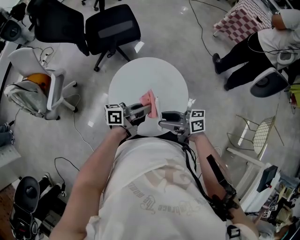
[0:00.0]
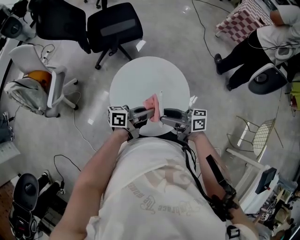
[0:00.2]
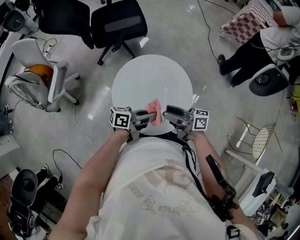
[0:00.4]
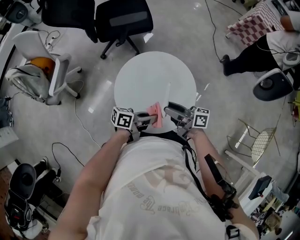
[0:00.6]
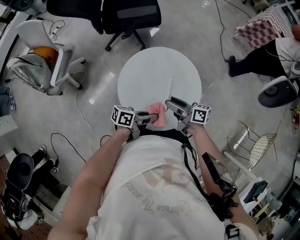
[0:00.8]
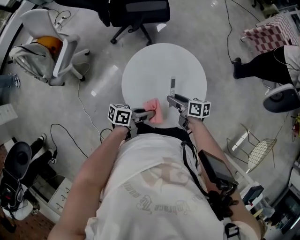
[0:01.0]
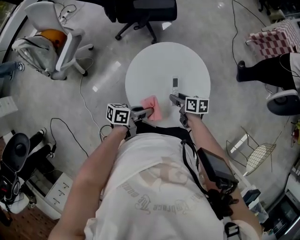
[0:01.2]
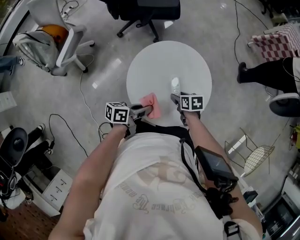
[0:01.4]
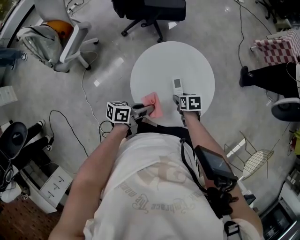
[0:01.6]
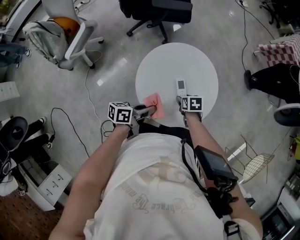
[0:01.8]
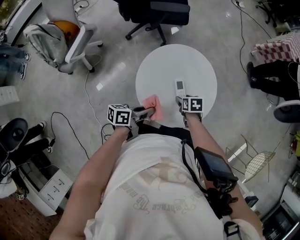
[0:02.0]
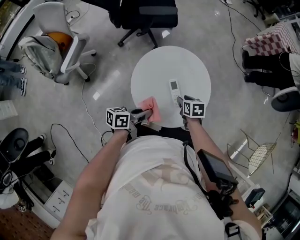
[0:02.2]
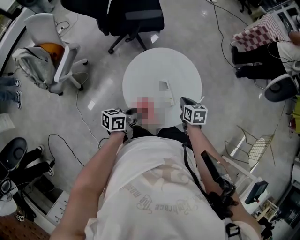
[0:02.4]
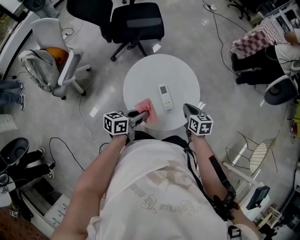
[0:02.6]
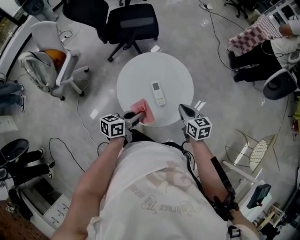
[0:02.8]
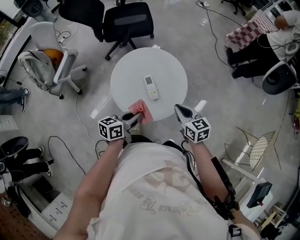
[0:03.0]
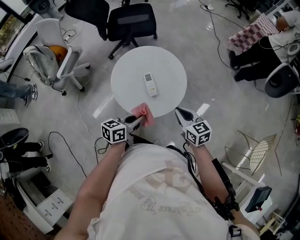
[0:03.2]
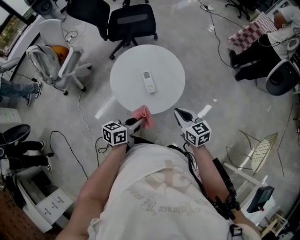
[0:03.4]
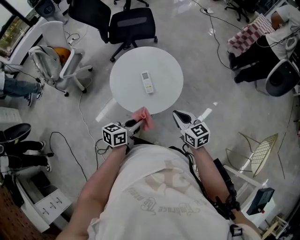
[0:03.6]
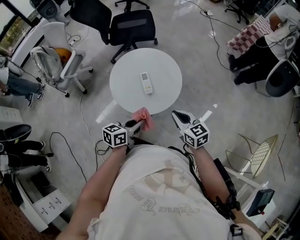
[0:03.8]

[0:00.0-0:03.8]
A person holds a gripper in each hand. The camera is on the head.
0:00.0 to 0:01.2: The right gripper is displaced downward by approximately 20 cm, and tips its fingers downward by about 40 degrees. Meanwhile the left gripper moves downward, about 10 cm, and changes its angle by roughly 20 degrees.
0:01.2 to 0:02.6: The left gripper moves upward, some 5 cm. Meanwhile the right gripper heads upward, covering roughly 10 cm, turns by some 30 degrees, and closes up.
0:02.6 to 0:03.8: The right gripper goes about 20 cm backward, upward and to the right, and changes its angle by roughly 30 degrees. The left gripper moves to the right and backward, approximately 20 cm.

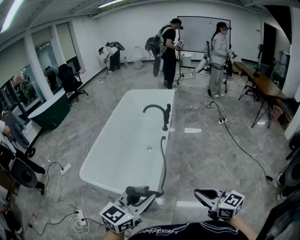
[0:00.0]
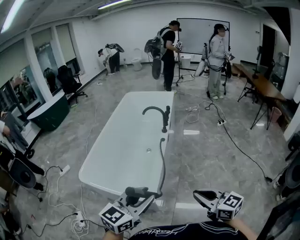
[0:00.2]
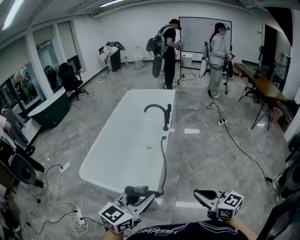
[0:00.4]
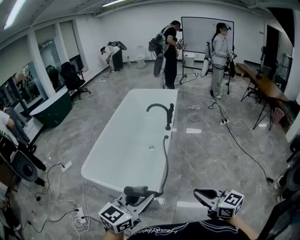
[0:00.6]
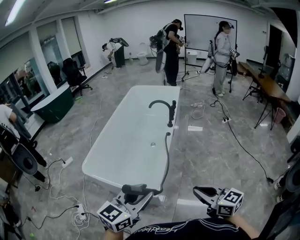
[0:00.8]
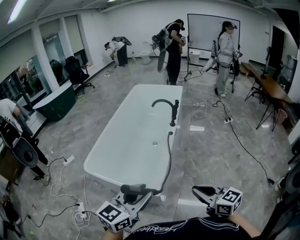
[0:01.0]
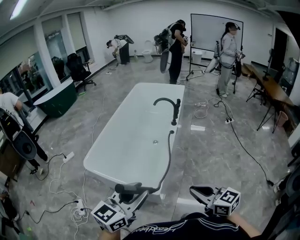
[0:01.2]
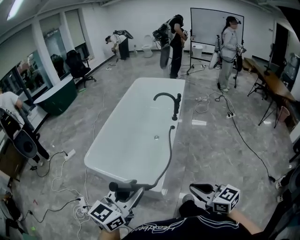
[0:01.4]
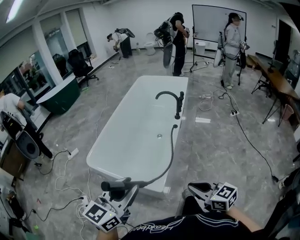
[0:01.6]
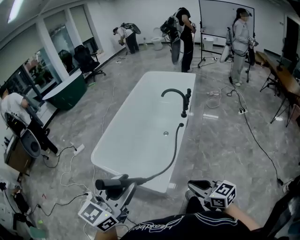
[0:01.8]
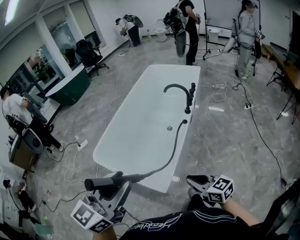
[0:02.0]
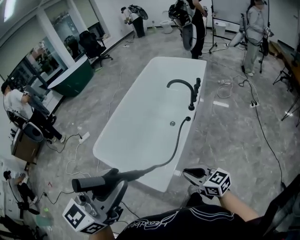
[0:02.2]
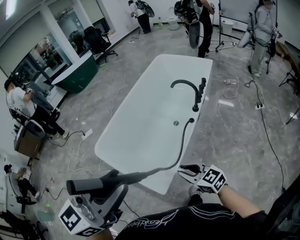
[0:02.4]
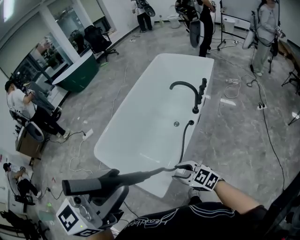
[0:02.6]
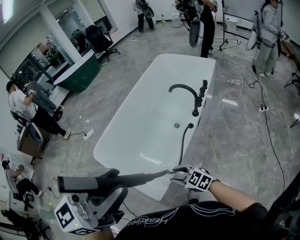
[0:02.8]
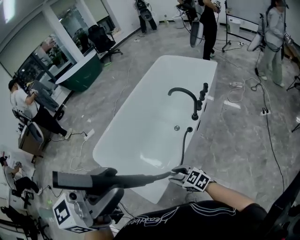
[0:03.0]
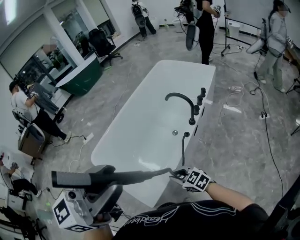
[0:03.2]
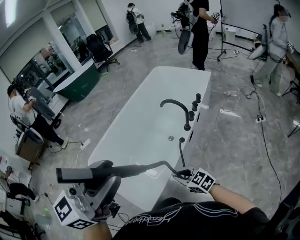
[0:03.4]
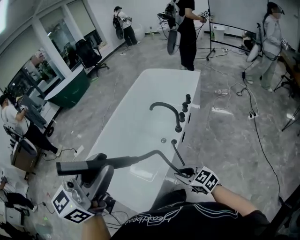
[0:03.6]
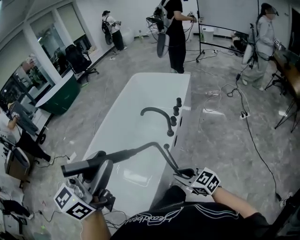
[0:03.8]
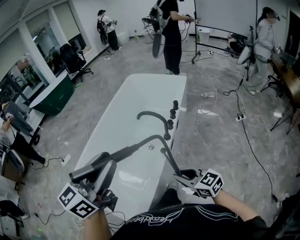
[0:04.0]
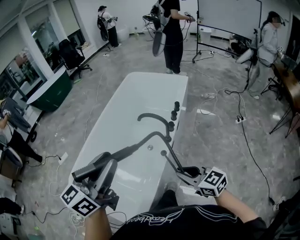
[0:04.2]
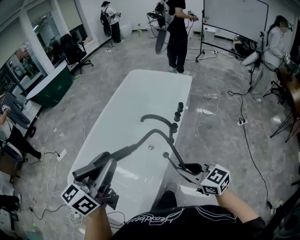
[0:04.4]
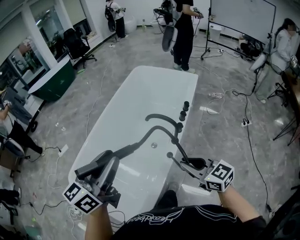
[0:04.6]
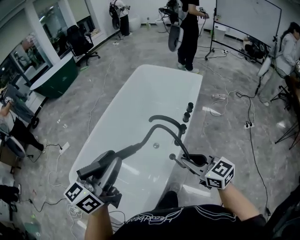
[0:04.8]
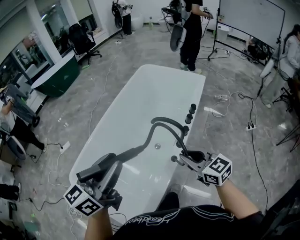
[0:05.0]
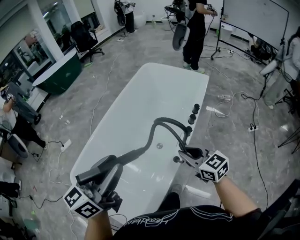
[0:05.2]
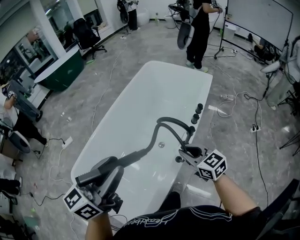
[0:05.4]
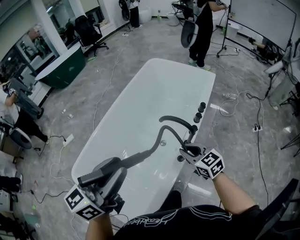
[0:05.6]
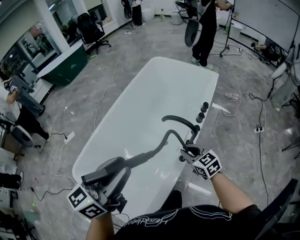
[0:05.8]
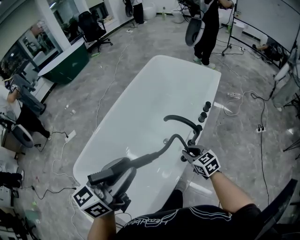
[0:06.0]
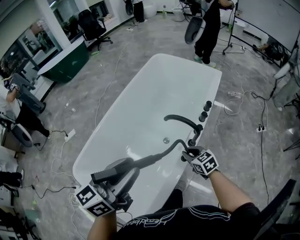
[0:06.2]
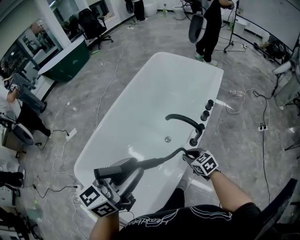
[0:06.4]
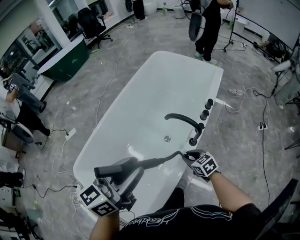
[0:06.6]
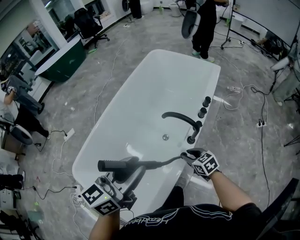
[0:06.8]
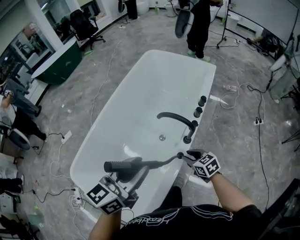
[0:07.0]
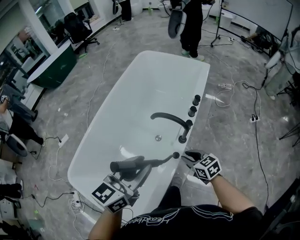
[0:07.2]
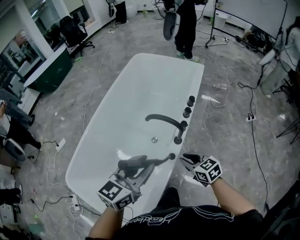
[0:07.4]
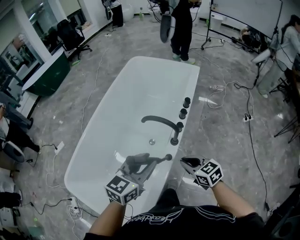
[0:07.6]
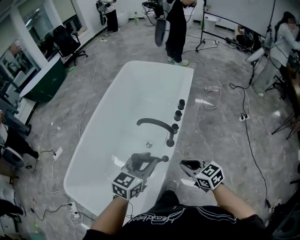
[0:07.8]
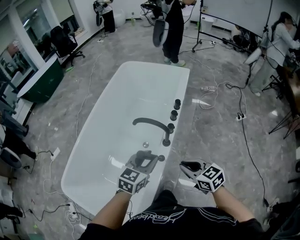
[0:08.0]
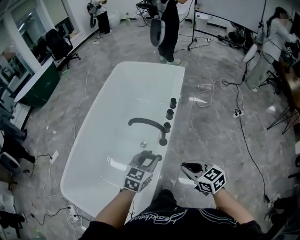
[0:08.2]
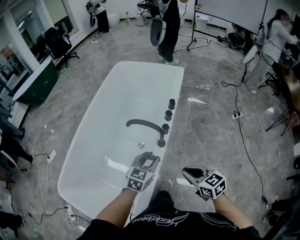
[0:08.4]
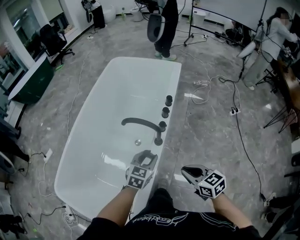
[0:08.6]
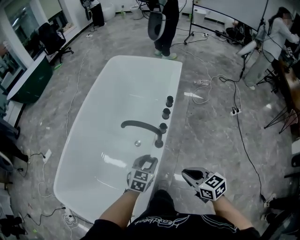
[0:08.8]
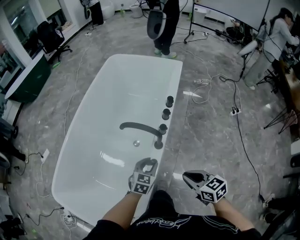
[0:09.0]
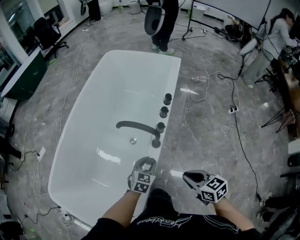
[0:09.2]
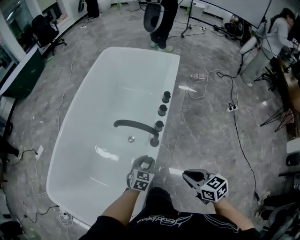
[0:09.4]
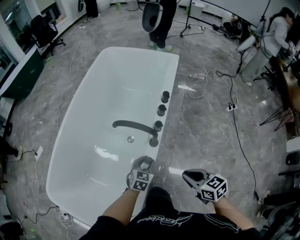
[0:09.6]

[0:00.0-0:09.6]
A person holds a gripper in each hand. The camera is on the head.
0:00.0 to 0:01.6: The left gripper goes some 10 cm to the left. The right gripper shifts approximately 5 cm to the left.
0:01.6 to 0:03.2: The left gripper heads to the right, upward and forward, covering roughly 30 cm, while the right gripper is displaced forward and downward by about 30 cm, changes its angle by roughly 40 degrees, and opens, then closes again.
0:03.2 to 0:04.8: The left gripper shifts approximately 30 cm forward and downward, and turns by approximately 20 degrees, while the right gripper goes roughly 30 cm forward, to the right and upward, and turns by some 30 degrees.
0:04.8 to 0:06.4: The left gripper is displaced downward by about 5 cm. Meanwhile the right gripper heads downward and forward, covering about 25 cm, and changes its angle by some 30 degrees.
0:06.4 to 0:08.0: The left gripper travels downward and to the right by about 25 cm, and changes its angle by about 30 degrees, while the right gripper shifts some 15 cm upward, to the right and backward.
0:08.0 to 0:09.6: The right gripper is displaced downward and to the right by some 10 cm, while the left gripper shifts some 25 cm downward.

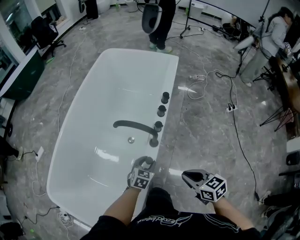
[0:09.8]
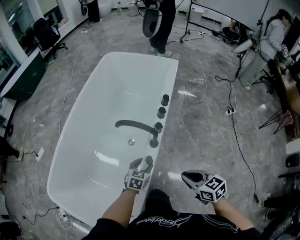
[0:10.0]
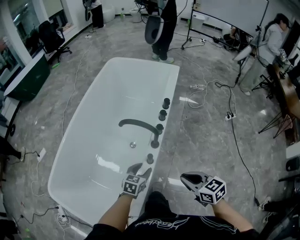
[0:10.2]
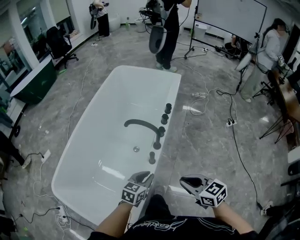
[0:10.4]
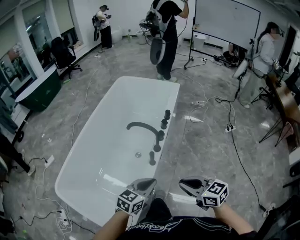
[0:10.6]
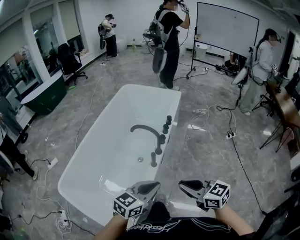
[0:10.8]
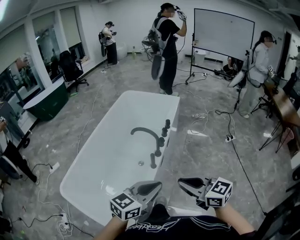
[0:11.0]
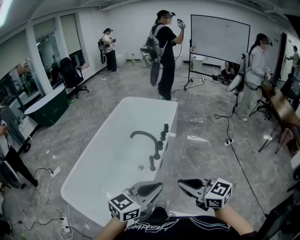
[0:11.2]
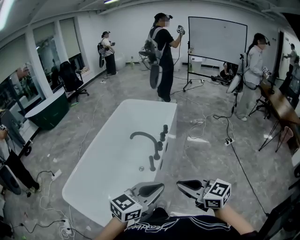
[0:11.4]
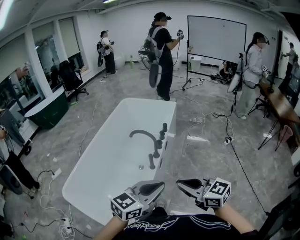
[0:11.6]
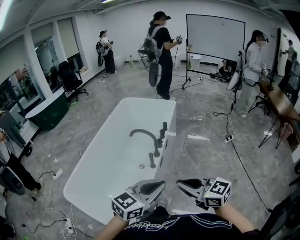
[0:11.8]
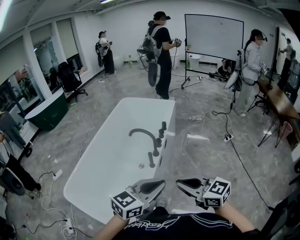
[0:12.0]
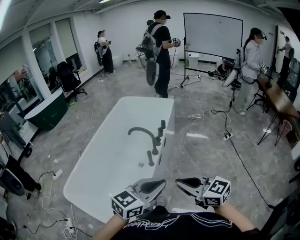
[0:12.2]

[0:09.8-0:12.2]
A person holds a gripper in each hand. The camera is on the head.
0:09.8 to 0:11.0: The left gripper is displaced upward and backward by some 40 cm, tilts its fingers roughly 30 degrees upward, and closes up, while the right gripper heads upward and backward, covering roughly 30 cm, and rotates approximately 30 degrees.
0:11.0 to 0:12.2: The two grippers go about 5 cm backward.

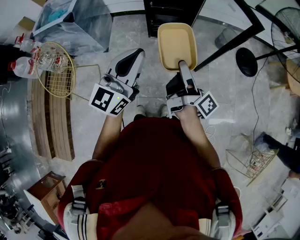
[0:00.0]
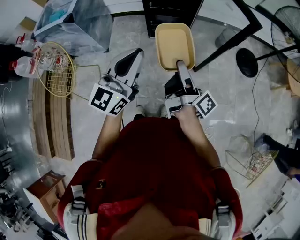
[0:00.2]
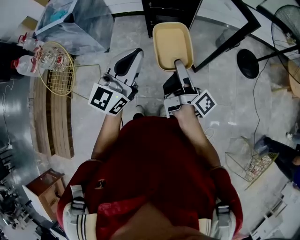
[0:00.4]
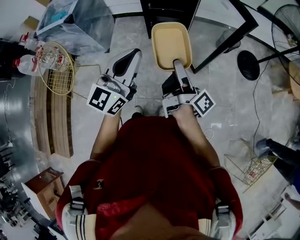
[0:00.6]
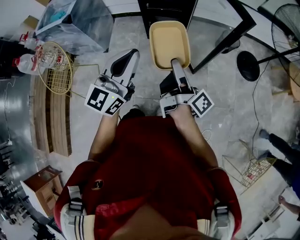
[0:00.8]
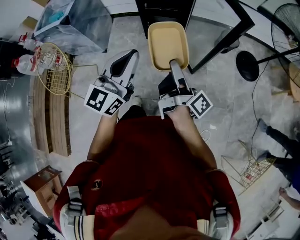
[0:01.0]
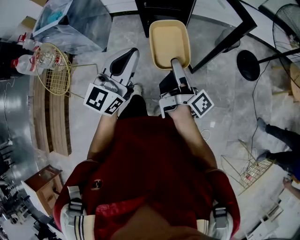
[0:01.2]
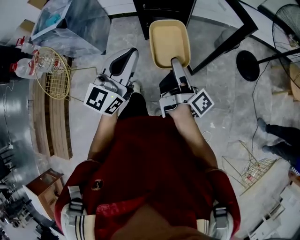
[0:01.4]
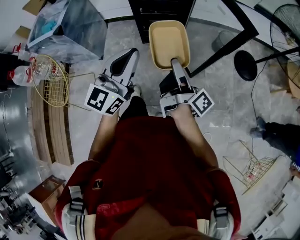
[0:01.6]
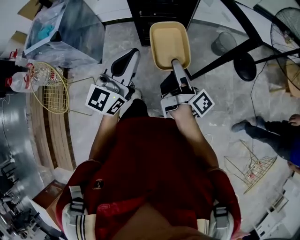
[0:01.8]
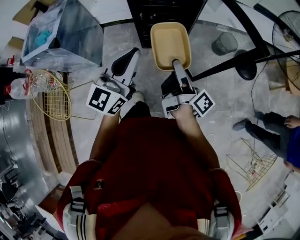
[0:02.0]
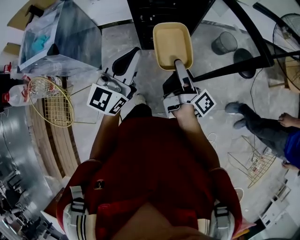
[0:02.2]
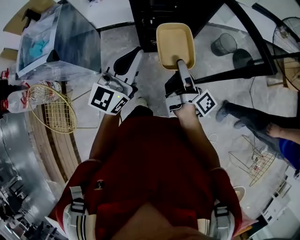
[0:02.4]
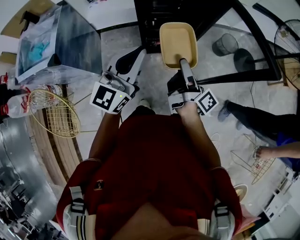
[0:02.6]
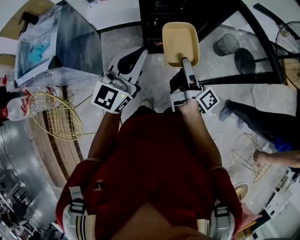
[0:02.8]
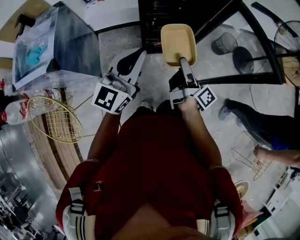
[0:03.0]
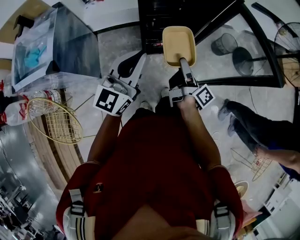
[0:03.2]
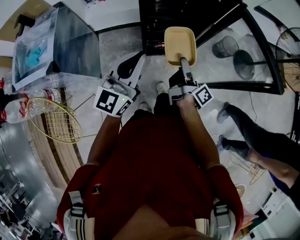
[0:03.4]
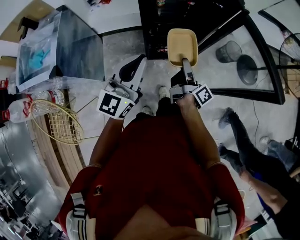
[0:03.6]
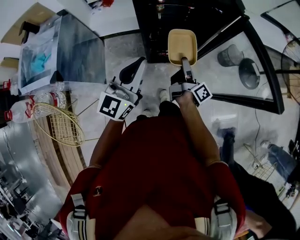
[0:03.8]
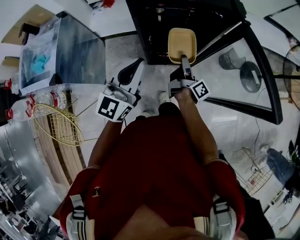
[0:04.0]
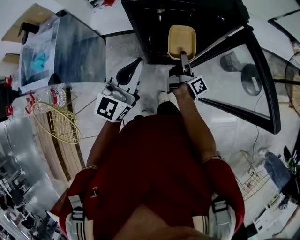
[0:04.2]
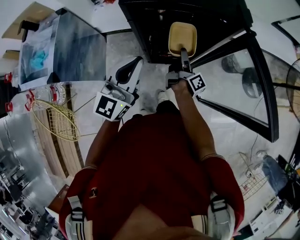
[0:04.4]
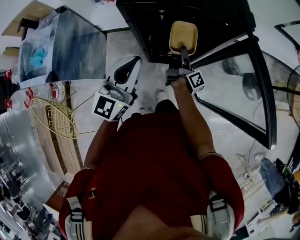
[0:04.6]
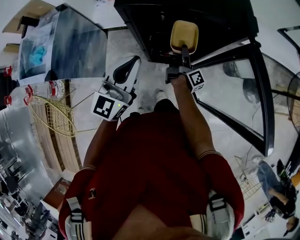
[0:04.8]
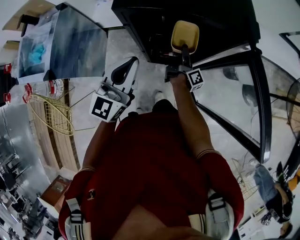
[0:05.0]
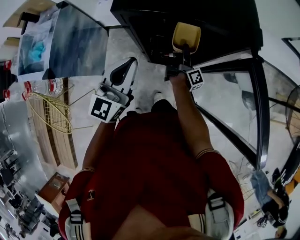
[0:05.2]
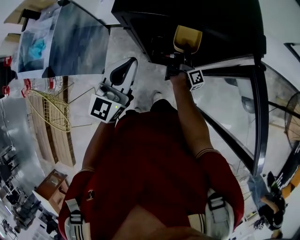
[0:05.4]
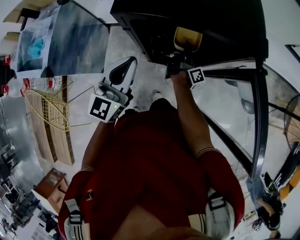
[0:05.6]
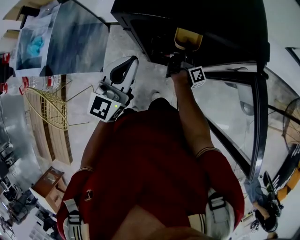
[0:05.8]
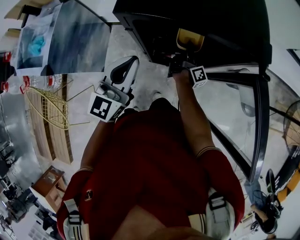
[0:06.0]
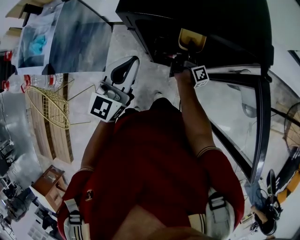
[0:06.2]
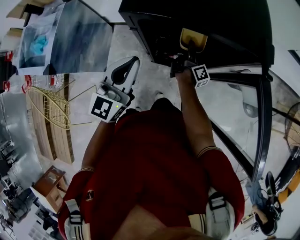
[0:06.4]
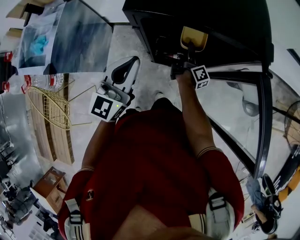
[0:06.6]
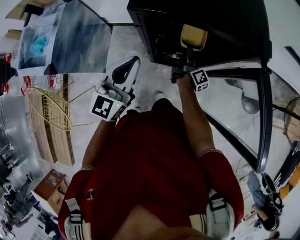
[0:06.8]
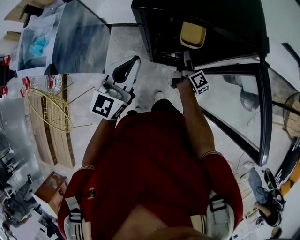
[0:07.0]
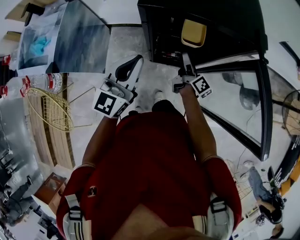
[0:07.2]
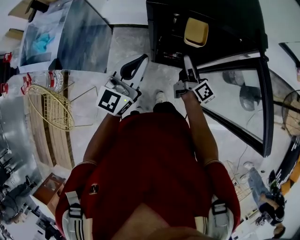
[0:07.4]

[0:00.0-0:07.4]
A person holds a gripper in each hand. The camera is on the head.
0:00.0 to 0:01.4: The two grippers go approximately 10 cm to the right and forward.
0:01.4 to 0:03.0: The grippers both shift forward and to the left by approximately 35 cm.
0:03.0 to 0:04.4: The left gripper travels forward by roughly 15 cm, while the right gripper heads forward and downward, covering roughly 25 cm.
0:04.4 to 0:06.0: The left gripper travels forward by about 5 cm, while the right gripper heads forward and downward, covering approximately 15 cm.
0:06.0 to 0:07.4: The left gripper is displaced backward by approximately 5 cm. The right gripper is displaced backward and upward by some 20 cm, and swivels roughly 30 degrees.
